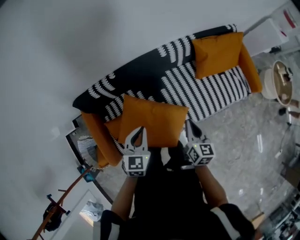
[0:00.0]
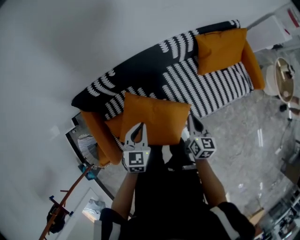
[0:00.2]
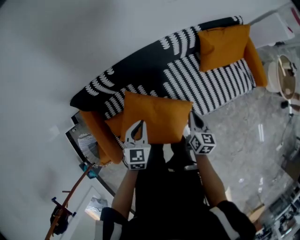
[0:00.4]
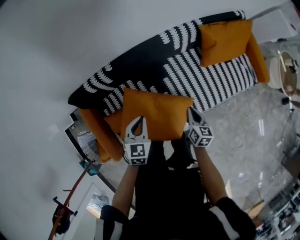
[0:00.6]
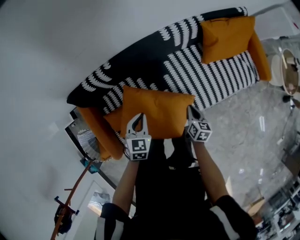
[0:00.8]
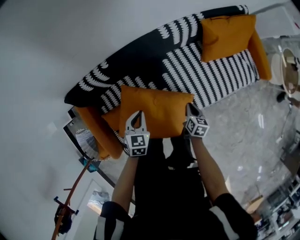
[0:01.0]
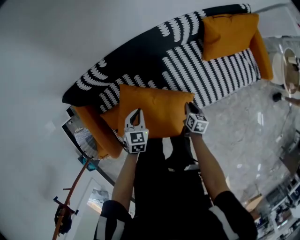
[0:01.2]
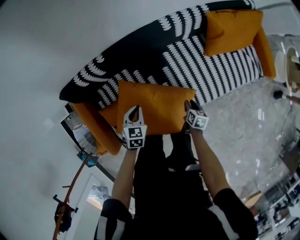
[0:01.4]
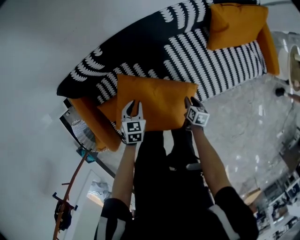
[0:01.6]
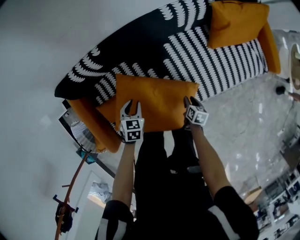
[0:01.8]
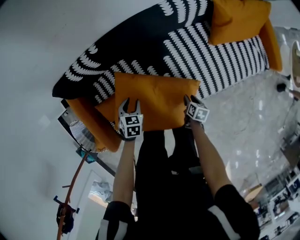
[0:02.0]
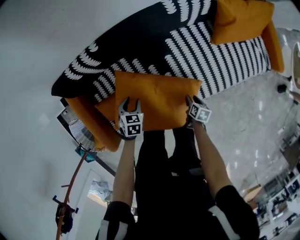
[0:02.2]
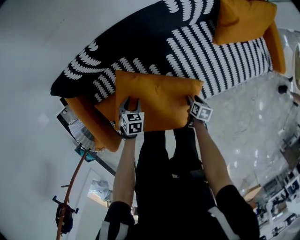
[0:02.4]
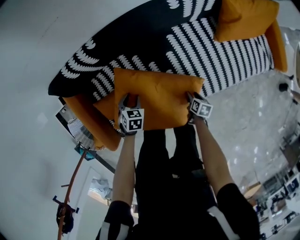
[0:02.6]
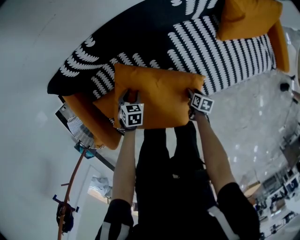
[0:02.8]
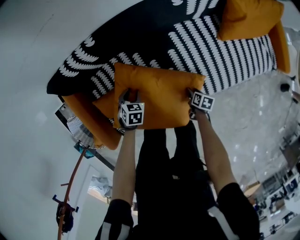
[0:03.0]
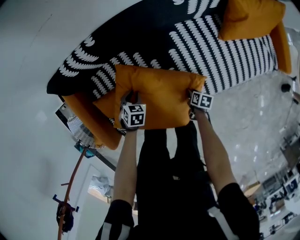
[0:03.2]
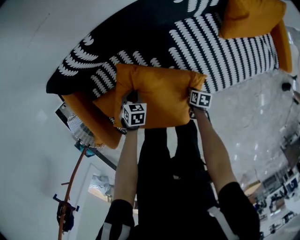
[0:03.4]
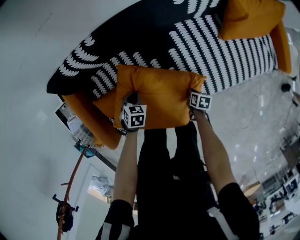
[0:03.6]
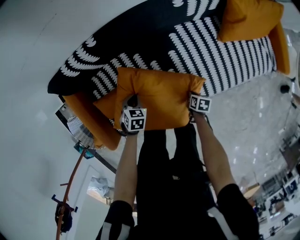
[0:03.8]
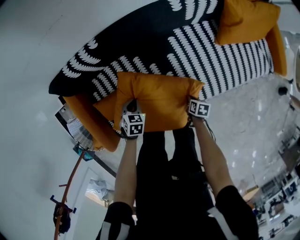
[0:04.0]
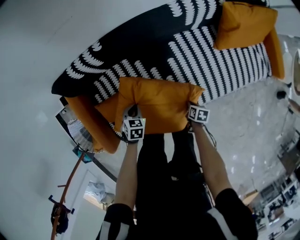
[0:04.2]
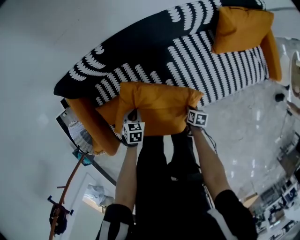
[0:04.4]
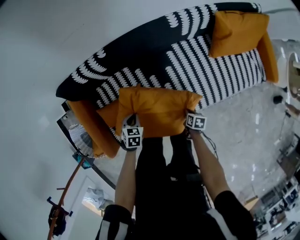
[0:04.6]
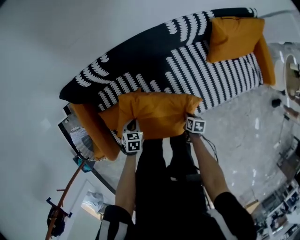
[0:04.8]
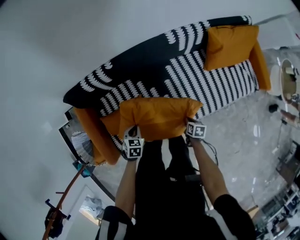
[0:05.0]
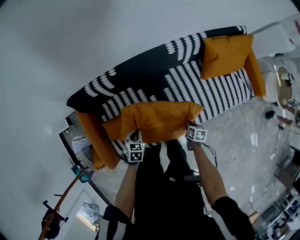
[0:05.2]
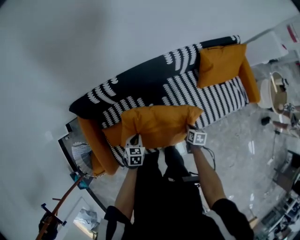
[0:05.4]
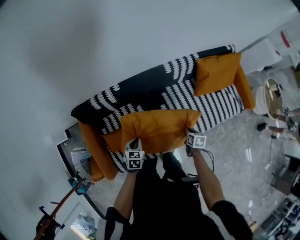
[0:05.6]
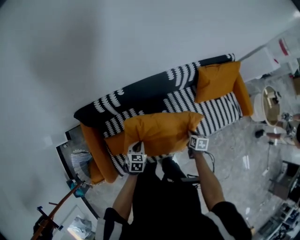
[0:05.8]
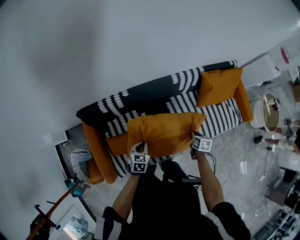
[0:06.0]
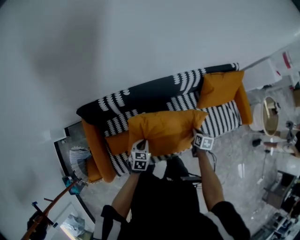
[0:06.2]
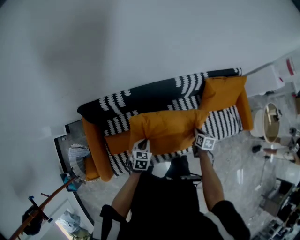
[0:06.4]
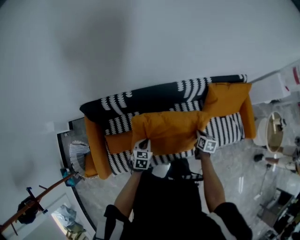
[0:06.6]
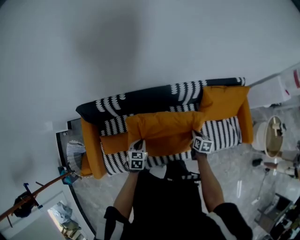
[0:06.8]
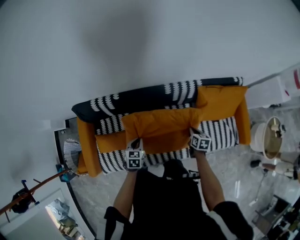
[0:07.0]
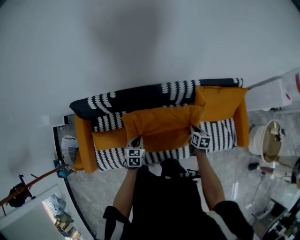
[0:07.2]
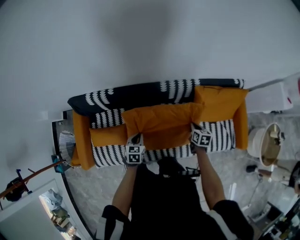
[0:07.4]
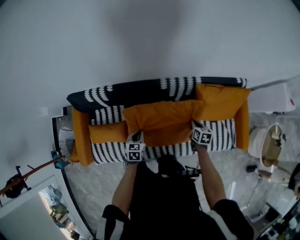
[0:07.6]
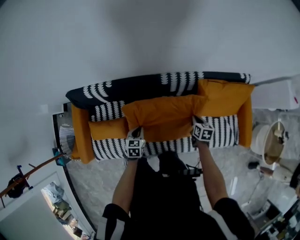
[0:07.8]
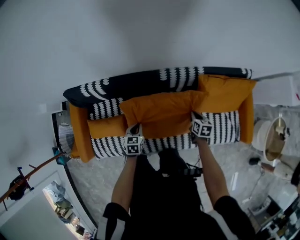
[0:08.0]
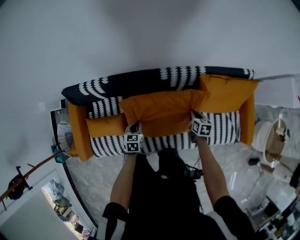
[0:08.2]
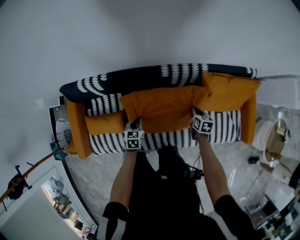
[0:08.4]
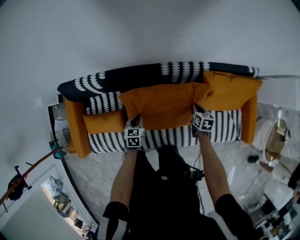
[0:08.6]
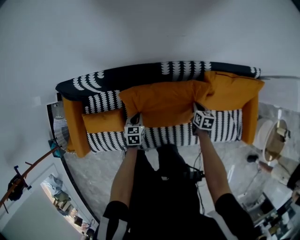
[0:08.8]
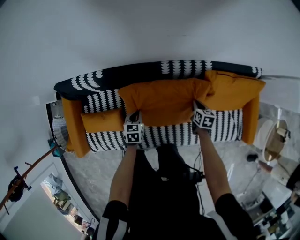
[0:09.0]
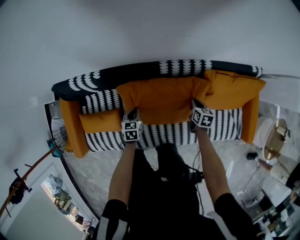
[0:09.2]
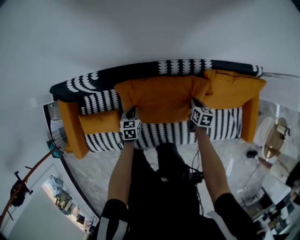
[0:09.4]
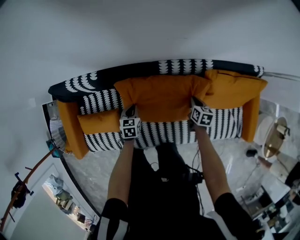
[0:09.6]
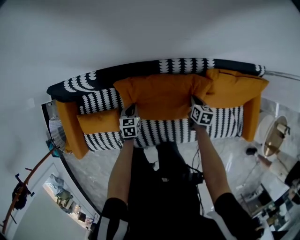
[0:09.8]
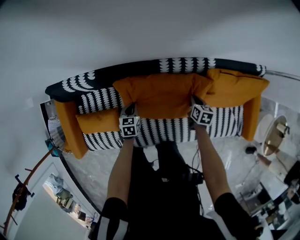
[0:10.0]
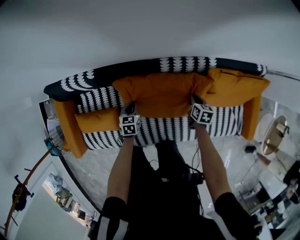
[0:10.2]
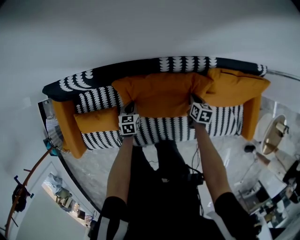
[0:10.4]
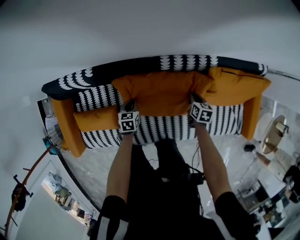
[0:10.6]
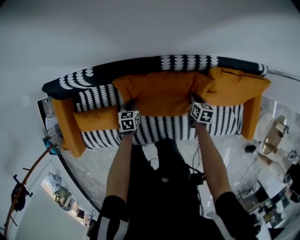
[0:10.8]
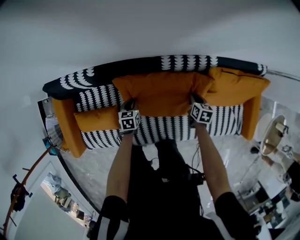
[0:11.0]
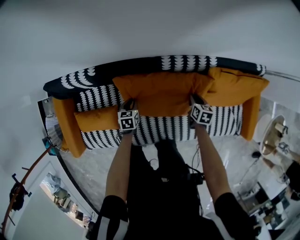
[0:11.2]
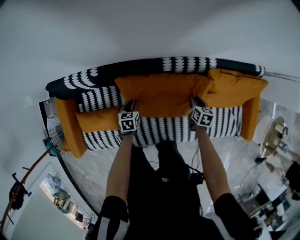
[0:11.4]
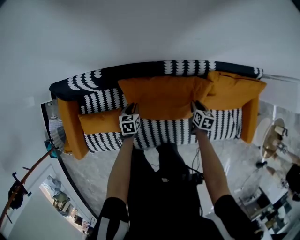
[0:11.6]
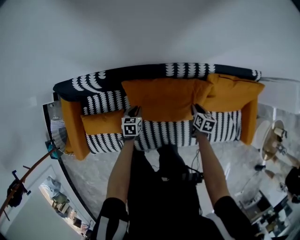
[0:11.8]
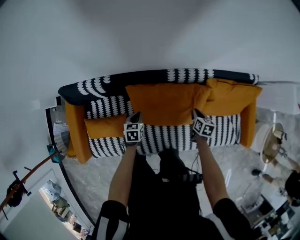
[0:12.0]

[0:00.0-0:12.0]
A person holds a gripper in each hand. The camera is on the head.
0.0 to 1.6 s: The two grippers go approximately 30 cm downward. The right gripper tips its fingers downward by about 30 degrees, and opens. Meanwhile the left gripper turns by approximately 20 degrees.
1.6 to 3.0 s: The two grippers go roughly 15 cm downward. The left gripper opens.
3.0 to 4.4 s: The left gripper changes place by some 5 cm, and closes its fingers. Meanwhile the right gripper shifts by roughly 5 cm, and closes its fingers.
4.4 to 6.0 s: The two grippers go some 20 cm upward. The right gripper swivels some 20 degrees.
6.0 to 7.6 s: The right gripper is displaced forward and to the right by approximately 25 cm, while the left gripper moves to the right and forward, some 20 cm, and changes its angle by approximately 20 degrees.
7.6 to 9.0 s: The grippers both shift downward and forward by approximately 10 cm.
9.0 to 10.4 s: The right gripper changes place by some 5 cm, while the left gripper heads downward, covering roughly 5 cm.
10.4 to 12.0 s: Both grippers move upward, about 5 cm.

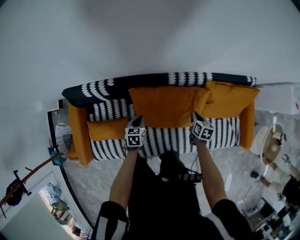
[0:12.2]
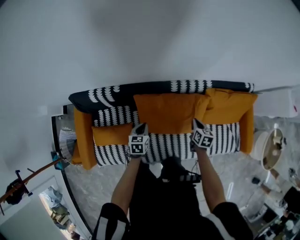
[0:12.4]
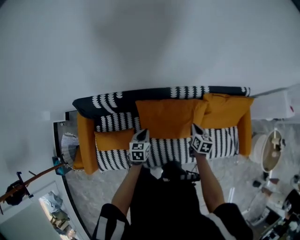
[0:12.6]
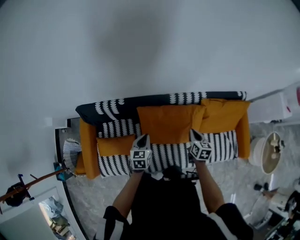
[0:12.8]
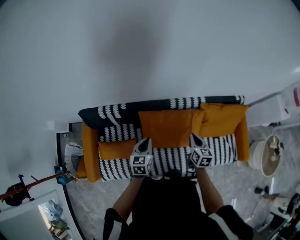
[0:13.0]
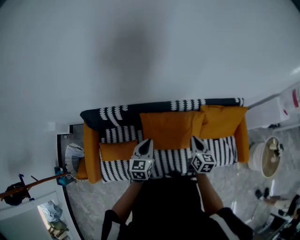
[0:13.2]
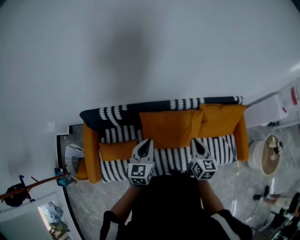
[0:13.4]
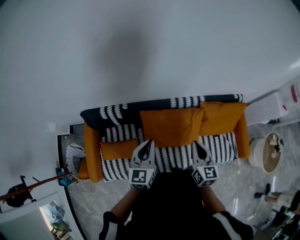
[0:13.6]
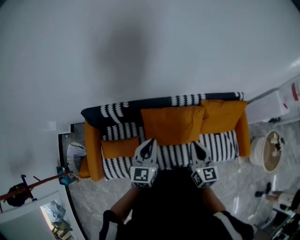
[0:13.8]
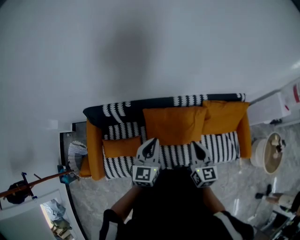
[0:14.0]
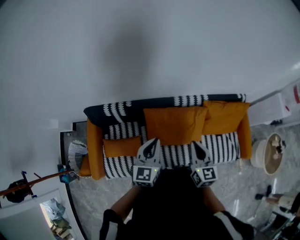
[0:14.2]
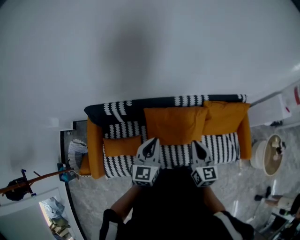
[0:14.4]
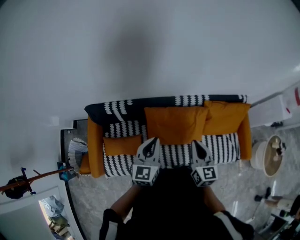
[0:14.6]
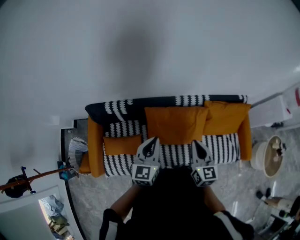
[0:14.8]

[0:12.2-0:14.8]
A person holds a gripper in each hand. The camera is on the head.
12.2 to 13.4 s: The two grippers go approximately 30 cm upward. The right gripper turns by approximately 30 degrees. The left gripper angles its fingers upward, by some 30 degrees.
13.4 to 14.8 s: The right gripper goes about 5 cm upward.

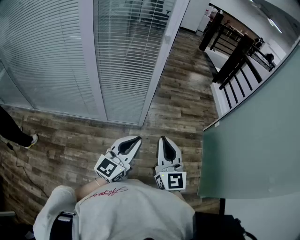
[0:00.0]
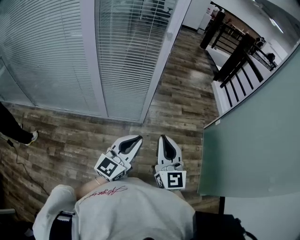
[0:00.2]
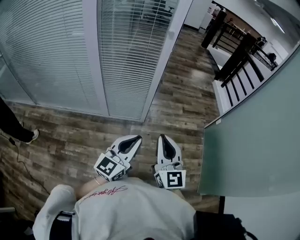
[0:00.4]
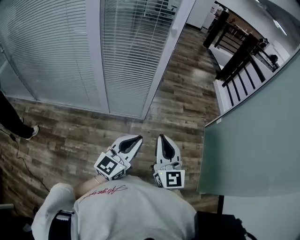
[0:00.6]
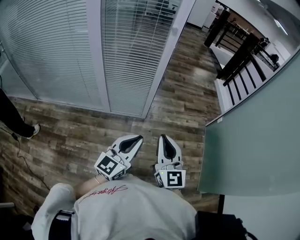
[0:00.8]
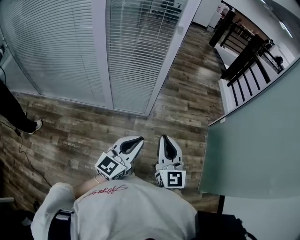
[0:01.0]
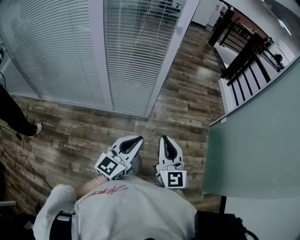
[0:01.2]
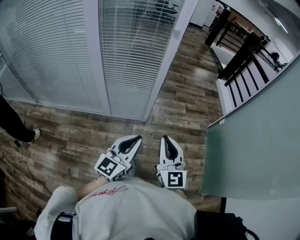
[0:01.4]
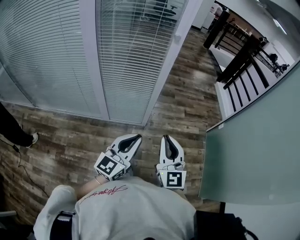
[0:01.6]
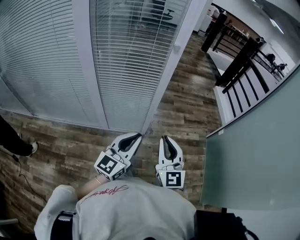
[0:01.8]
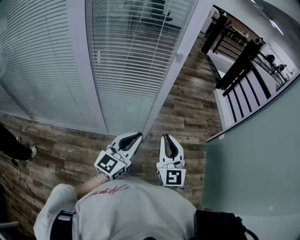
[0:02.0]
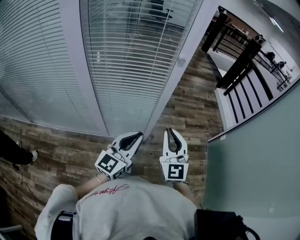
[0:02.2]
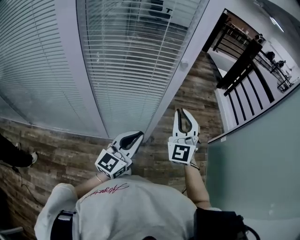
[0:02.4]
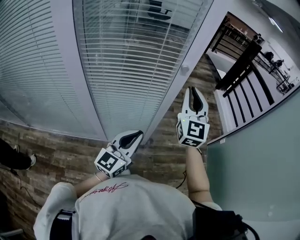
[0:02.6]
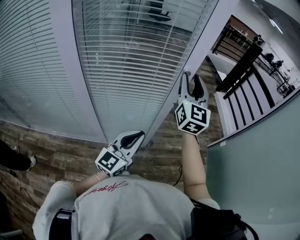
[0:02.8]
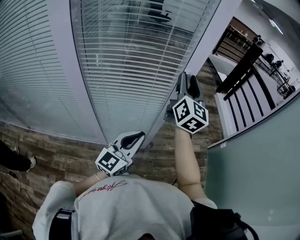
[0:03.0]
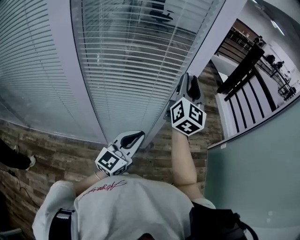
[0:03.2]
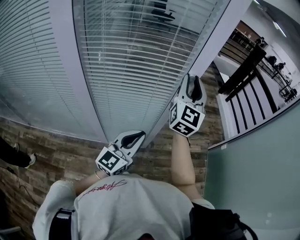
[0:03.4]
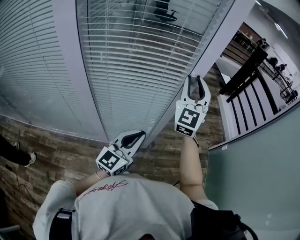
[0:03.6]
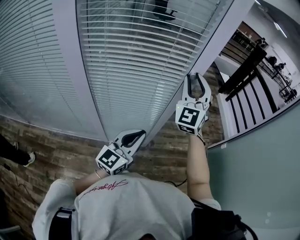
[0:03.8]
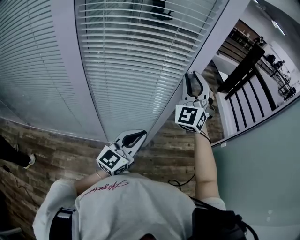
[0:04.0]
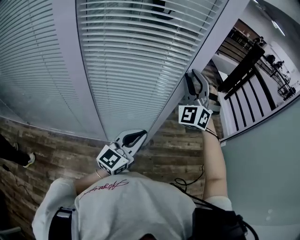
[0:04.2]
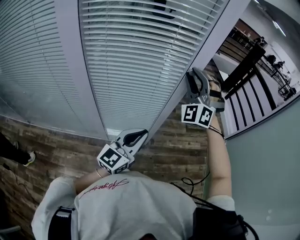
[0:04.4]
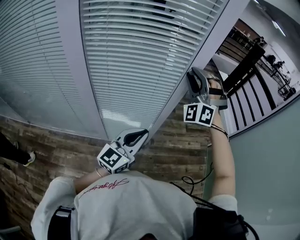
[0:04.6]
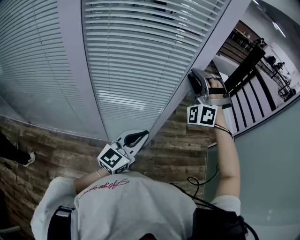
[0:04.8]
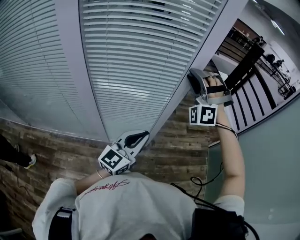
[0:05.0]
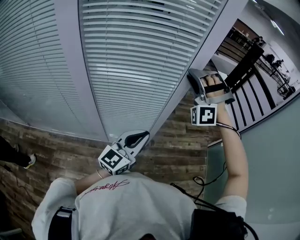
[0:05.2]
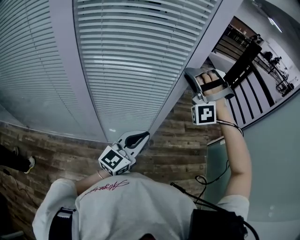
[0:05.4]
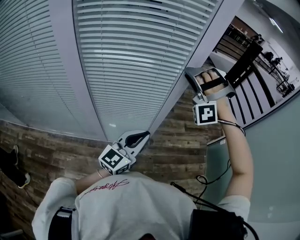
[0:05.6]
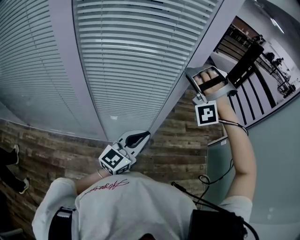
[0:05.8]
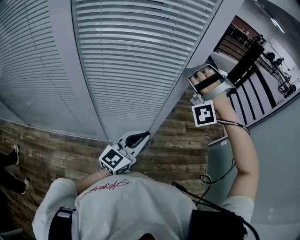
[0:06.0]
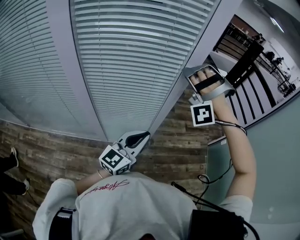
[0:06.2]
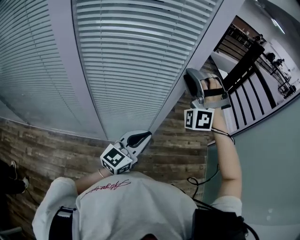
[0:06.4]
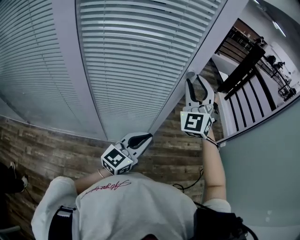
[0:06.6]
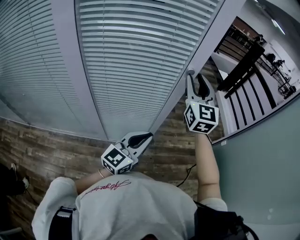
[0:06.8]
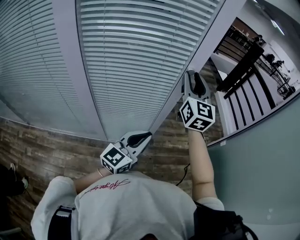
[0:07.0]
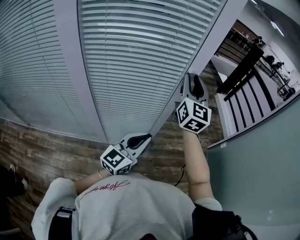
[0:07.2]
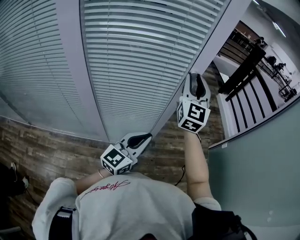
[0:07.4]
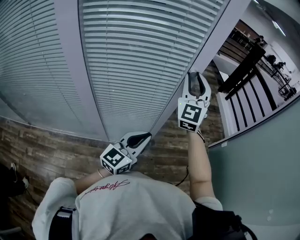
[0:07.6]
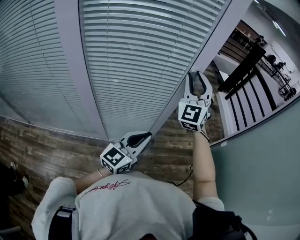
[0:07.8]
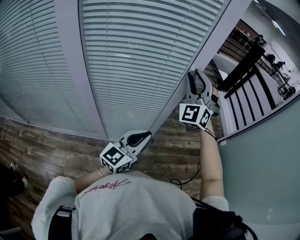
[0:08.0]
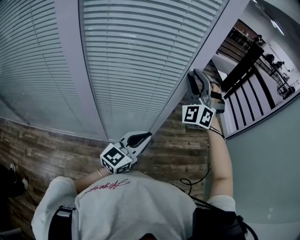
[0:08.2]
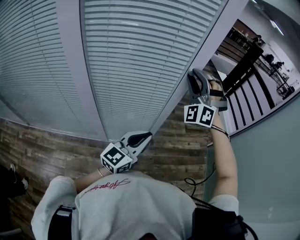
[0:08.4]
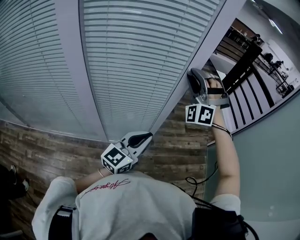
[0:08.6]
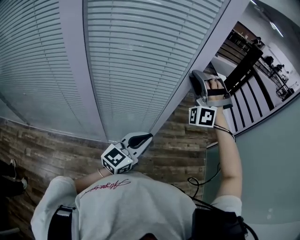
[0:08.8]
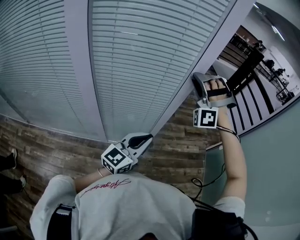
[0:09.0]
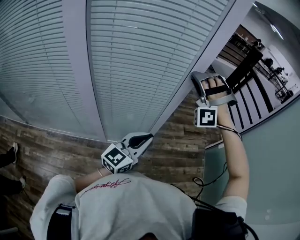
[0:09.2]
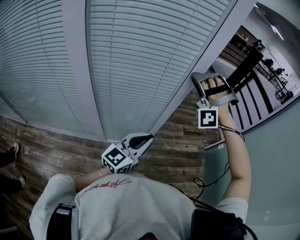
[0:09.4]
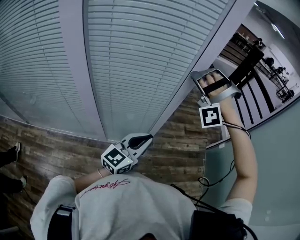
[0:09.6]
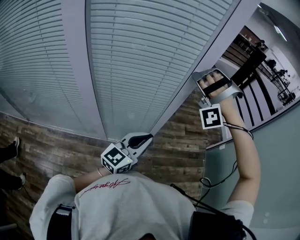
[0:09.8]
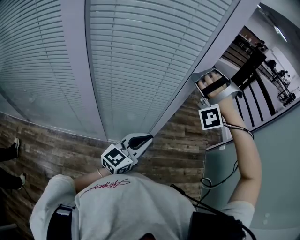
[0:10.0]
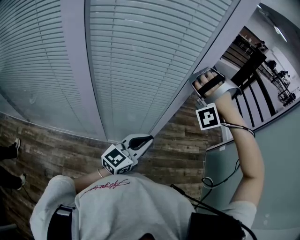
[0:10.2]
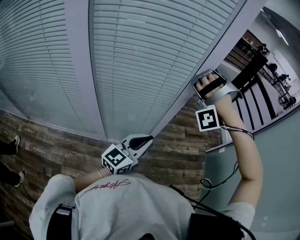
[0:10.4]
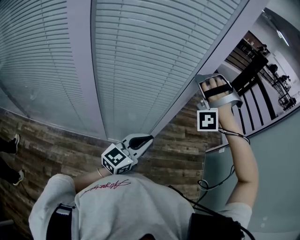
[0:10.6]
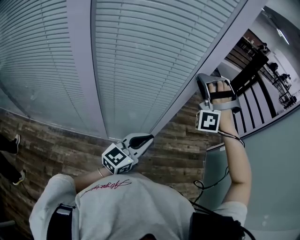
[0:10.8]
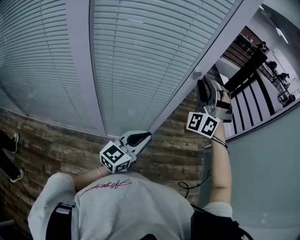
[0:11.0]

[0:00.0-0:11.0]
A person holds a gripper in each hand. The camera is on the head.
0.0 to 1.6 s: Both grippers travel together forward, approximately 5 cm.
1.6 to 3.2 s: The right gripper heads forward and upward, covering about 40 cm, changes its angle by approximately 30 degrees, and opens up. The left gripper shifts some 25 cm forward and to the left.
3.2 to 4.8 s: The right gripper twists some 100 degrees counterclockwise, seen from behind.
4.8 to 6.2 s: The right gripper swivels approximately 40 degrees.
6.2 to 7.8 s: The right gripper rotates around the line of its fingers by approximately 90 degrees, clockwise from behind.
7.8 to 9.4 s: The right gripper twists about 80 degrees counterclockwise, seen from behind.
9.4 to 11.0 s: The right gripper rolls clockwise, seen from behind, by some 40 degrees.
